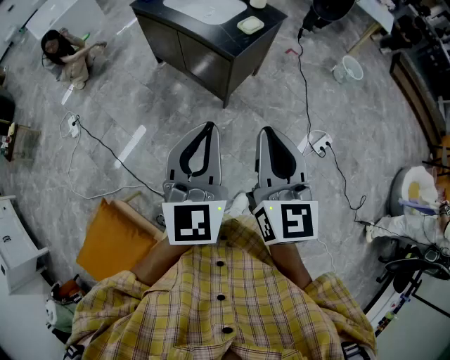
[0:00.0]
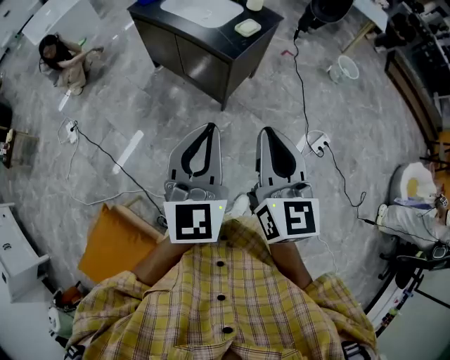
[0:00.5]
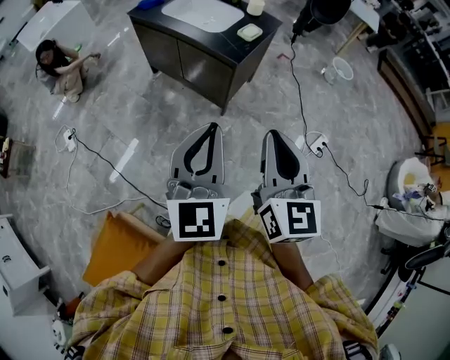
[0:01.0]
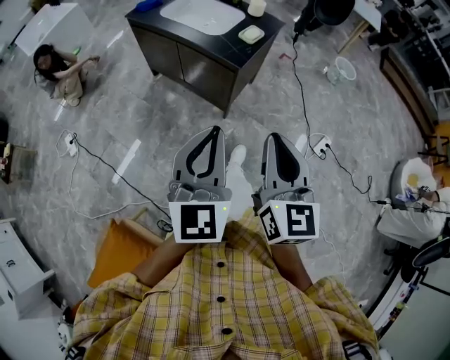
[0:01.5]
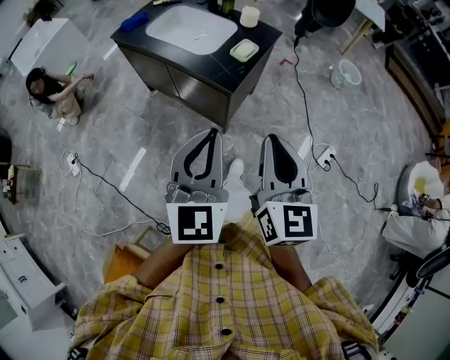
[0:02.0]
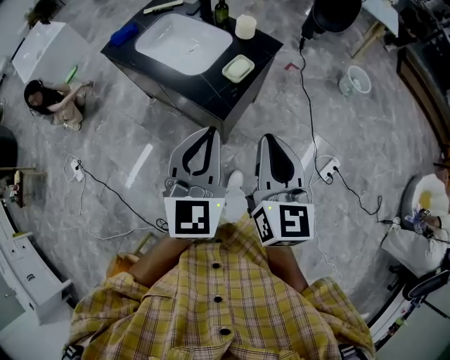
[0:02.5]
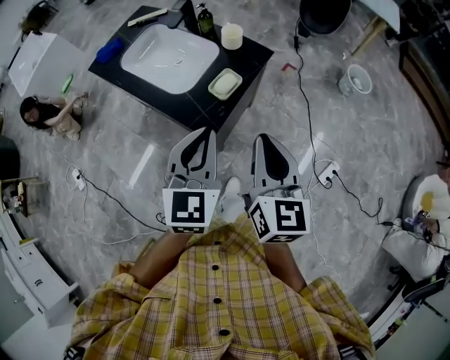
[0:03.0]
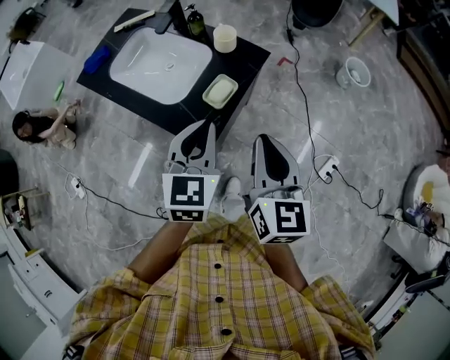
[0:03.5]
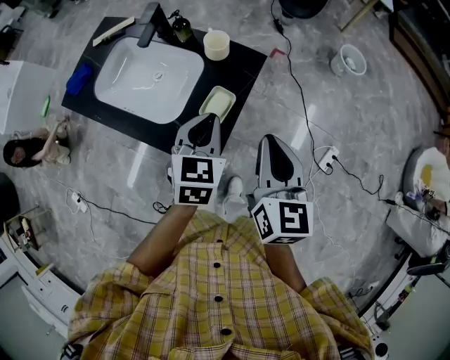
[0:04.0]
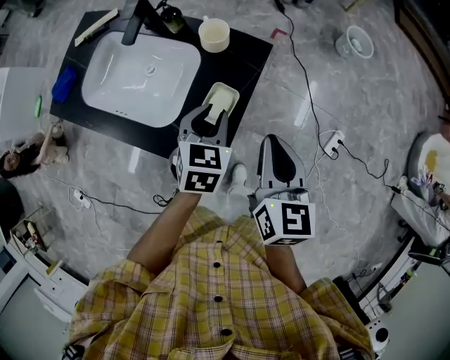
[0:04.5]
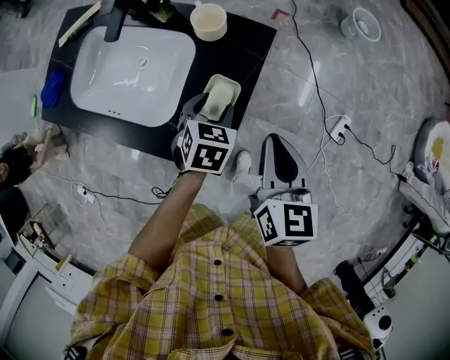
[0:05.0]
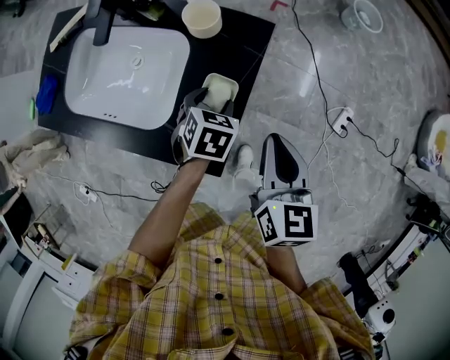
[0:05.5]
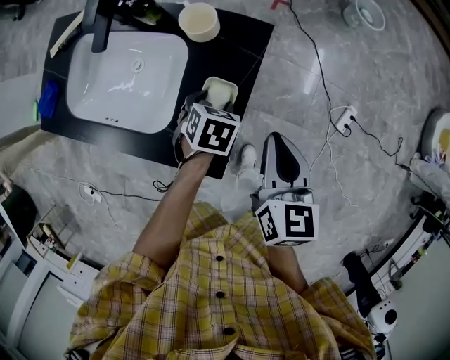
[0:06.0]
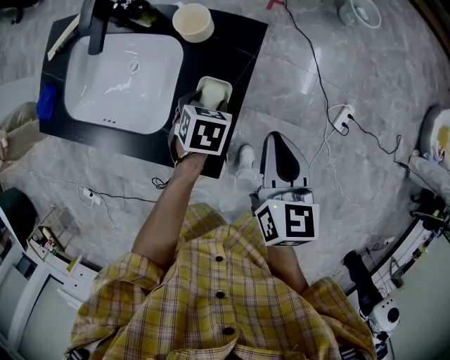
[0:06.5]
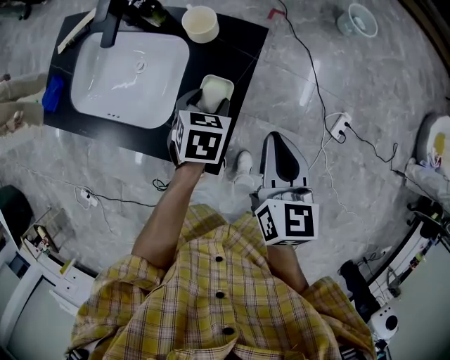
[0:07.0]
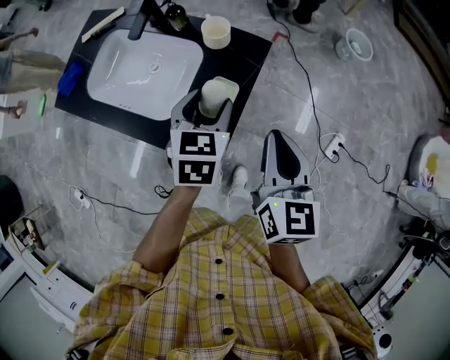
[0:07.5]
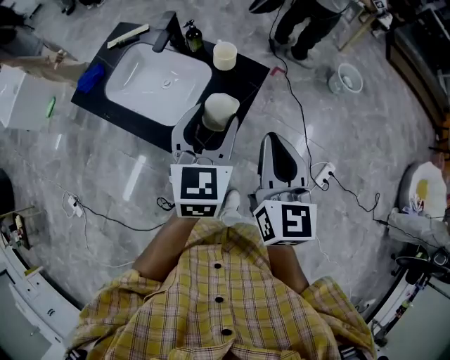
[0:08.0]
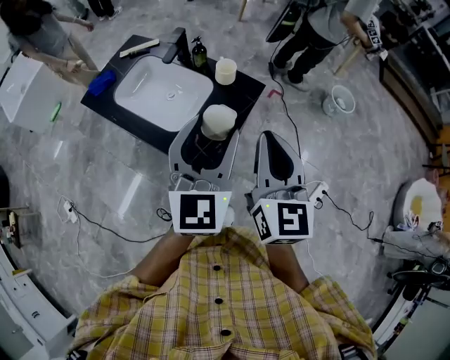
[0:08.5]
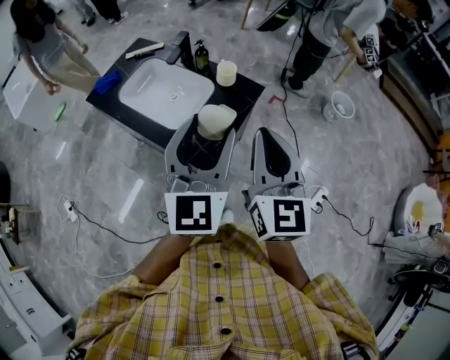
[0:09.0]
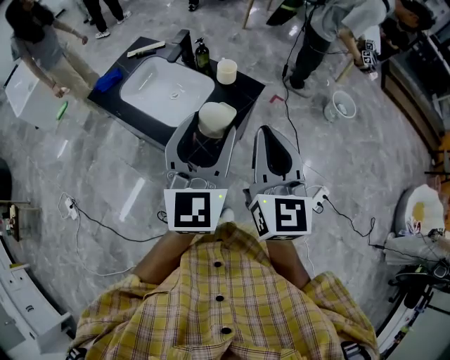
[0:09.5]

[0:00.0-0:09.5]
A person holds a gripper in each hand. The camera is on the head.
0:00.0 to 0:02.0: Both grippers travel together forward, about 20 cm.
0:02.0 to 0:04.0: Both grippers are carried forward, some 40 cm. The left gripper tilts its fingers roughly 30 degrees downward.
0:04.0 to 0:05.5: The left gripper moves downward, about 20 cm, changes its angle by about 30 degrees, and opens up. The right gripper moves downward and forward, approximately 15 cm.
0:05.5 to 0:07.5: The left gripper goes some 20 cm upward, and rotates about 30 degrees. Meanwhile the right gripper moves upward, some 10 cm.
0:07.5 to 0:09.5: The left gripper heads upward and backward, covering some 30 cm, and tips its fingers upward by approximately 40 degrees. Meanwhile the right gripper shifts roughly 20 cm upward and backward, and rotates approximately 30 degrees.

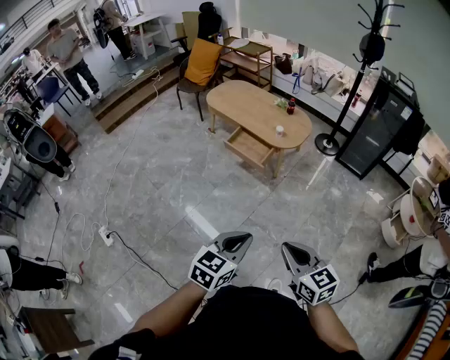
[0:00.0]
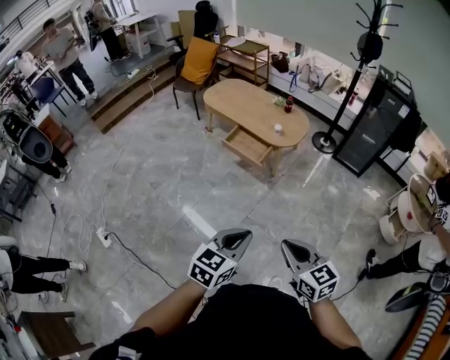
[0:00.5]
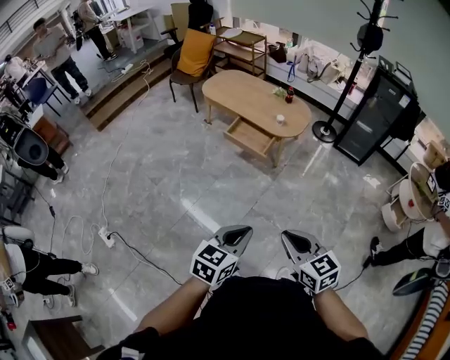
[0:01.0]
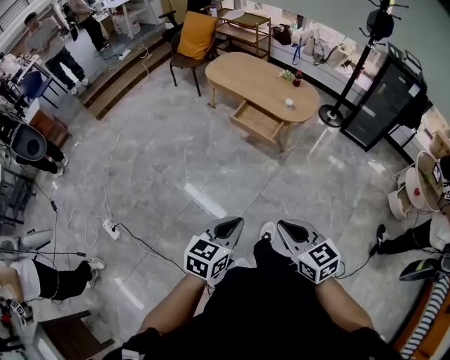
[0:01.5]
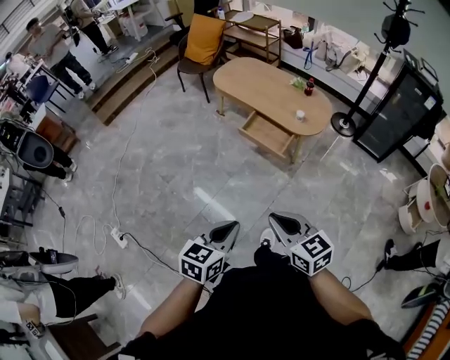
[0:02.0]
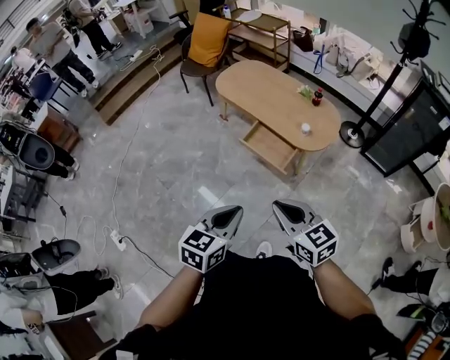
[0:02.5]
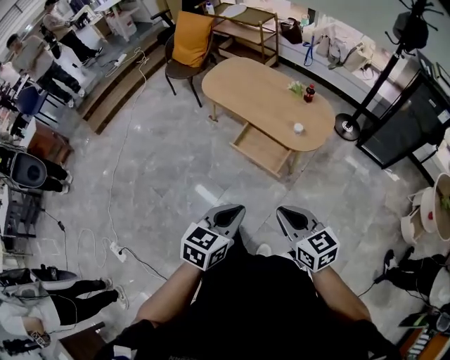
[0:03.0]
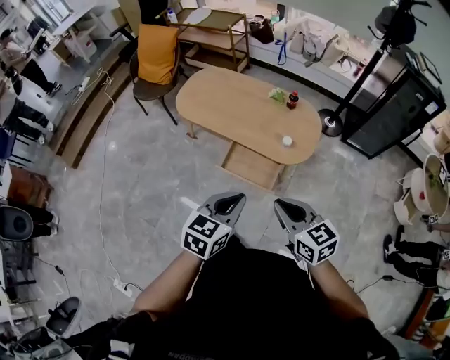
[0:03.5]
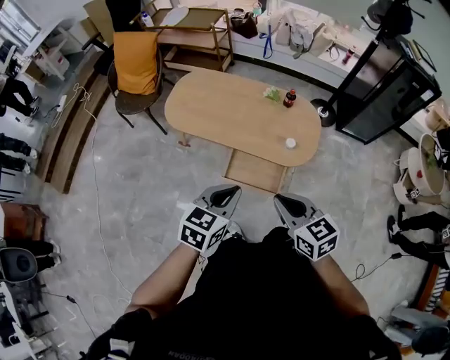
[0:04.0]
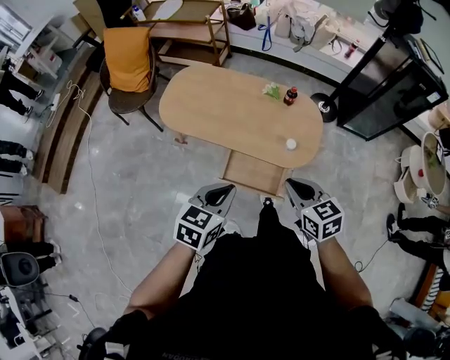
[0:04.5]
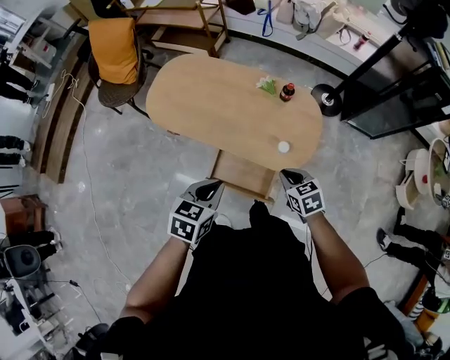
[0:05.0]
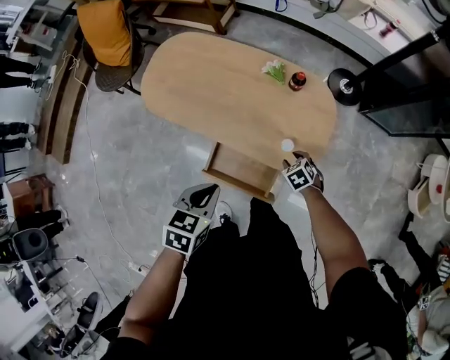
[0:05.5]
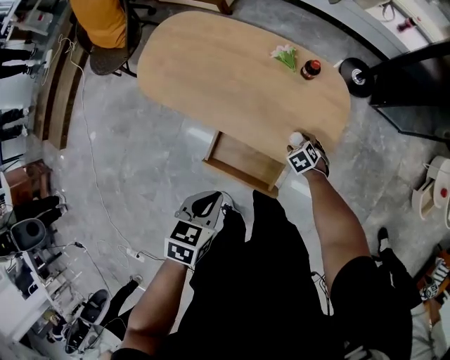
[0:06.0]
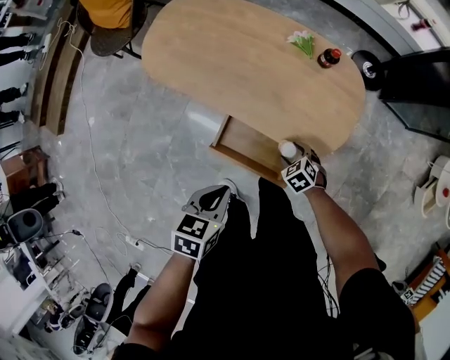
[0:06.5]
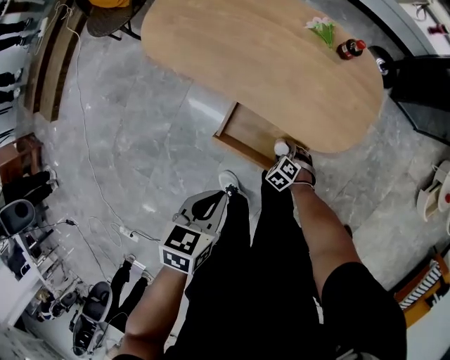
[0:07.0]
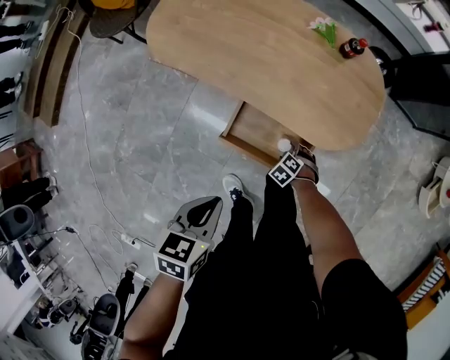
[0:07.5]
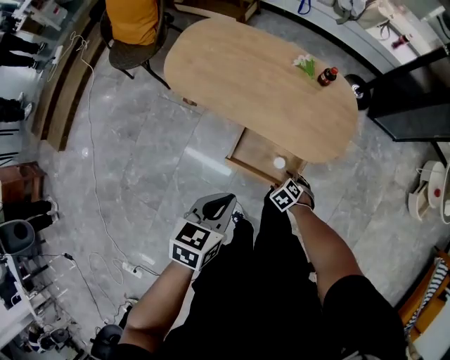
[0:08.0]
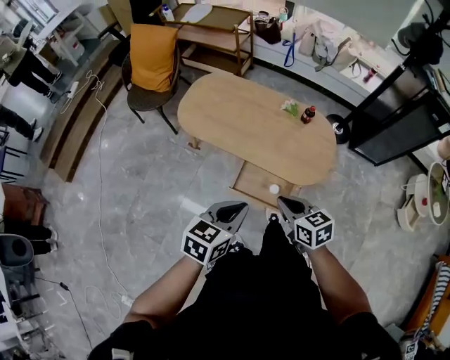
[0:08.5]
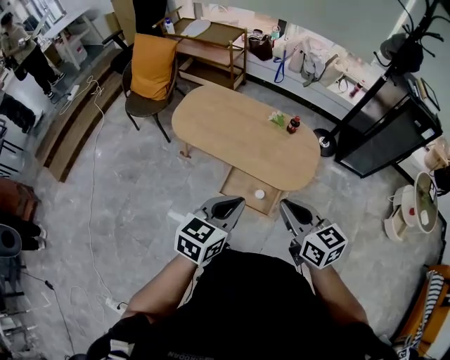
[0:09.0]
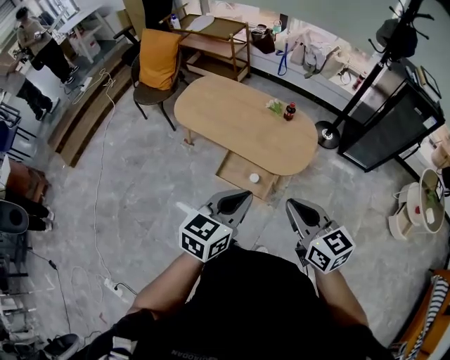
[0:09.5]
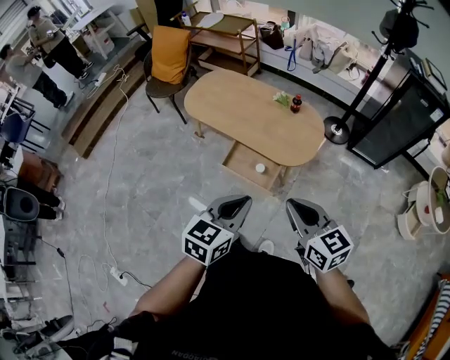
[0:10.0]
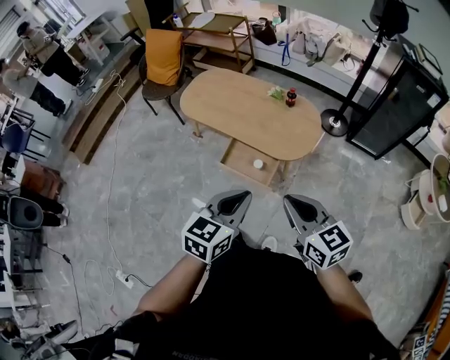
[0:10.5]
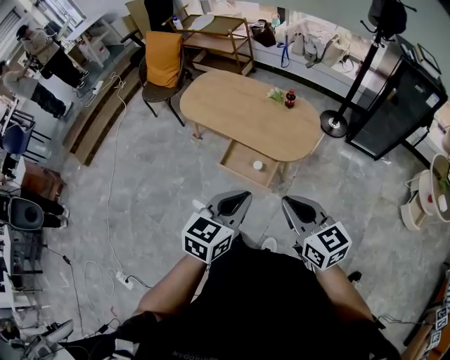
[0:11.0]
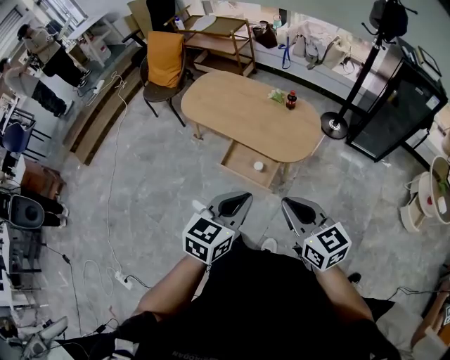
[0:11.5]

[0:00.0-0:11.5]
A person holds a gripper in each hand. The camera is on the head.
0:00.0 to 0:02.0: Both grippers travel together to the left and forward, some 25 cm.
0:02.0 to 0:04.0: The two grippers travel together, about 50 cm. The left gripper rotates roughly 30 degrees. The right gripper rotates some 20 degrees.
0:04.0 to 0:06.0: The right gripper travels downward by about 50 cm, angles its fingers downward, by some 50 degrees, and opens. The left gripper goes approximately 20 cm downward, and turns by about 30 degrees.
0:06.0 to 0:07.5: The left gripper shifts by some 15 cm. Meanwhile the right gripper moves approximately 25 cm, and changes its angle by roughly 20 degrees.
0:07.5 to 0:09.5: The right gripper moves upward, about 70 cm, tilts its fingers about 70 degrees upward, and closes up, while the left gripper goes approximately 30 cm upward, and points its fingers some 30 degrees further upward.
0:09.5 to 0:11.5: The two grippers go roughly 10 cm backward.

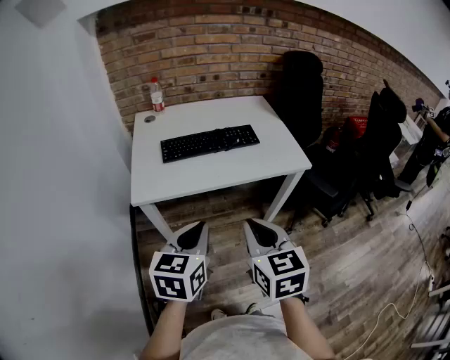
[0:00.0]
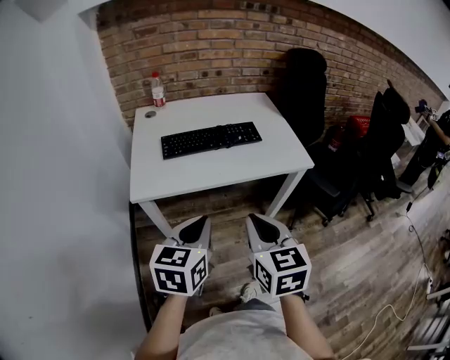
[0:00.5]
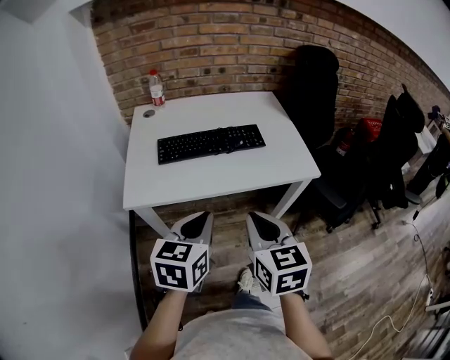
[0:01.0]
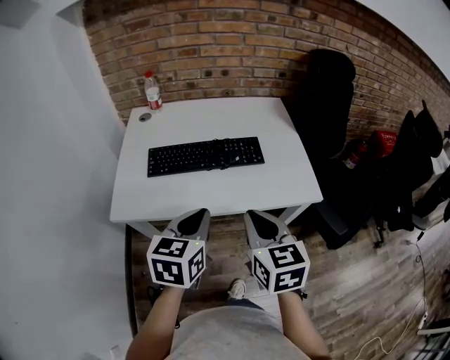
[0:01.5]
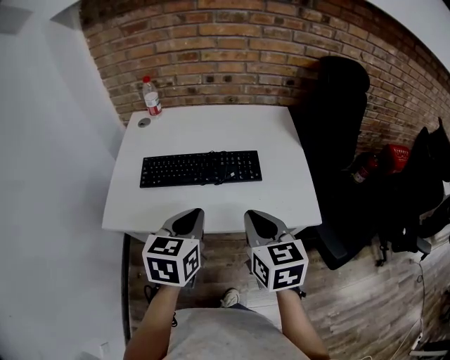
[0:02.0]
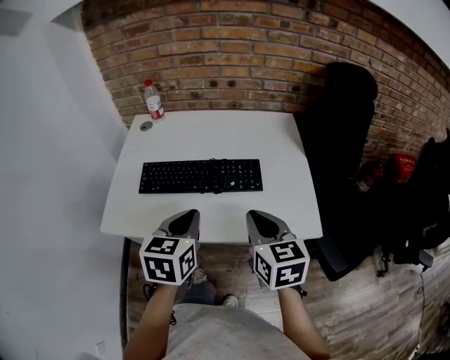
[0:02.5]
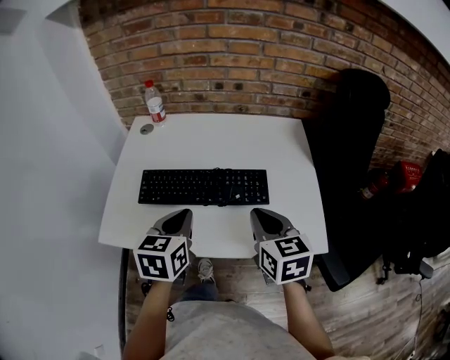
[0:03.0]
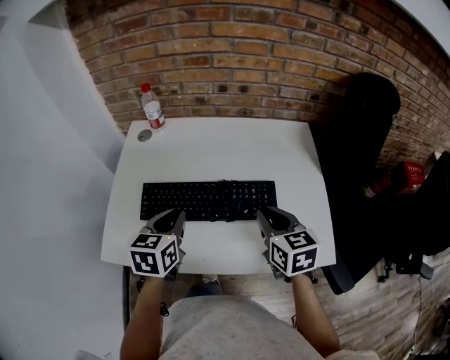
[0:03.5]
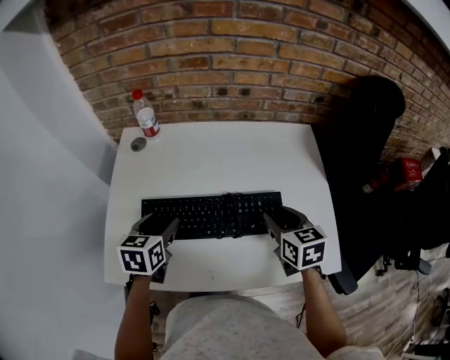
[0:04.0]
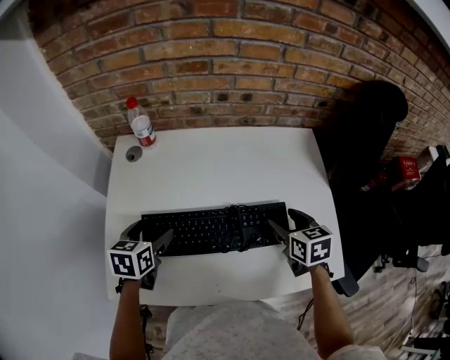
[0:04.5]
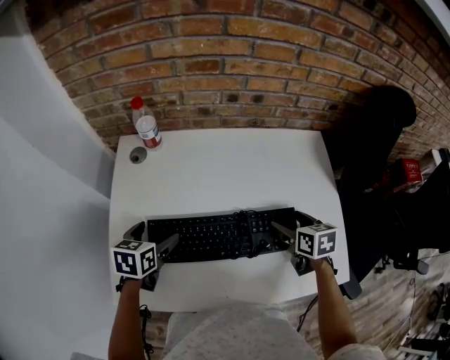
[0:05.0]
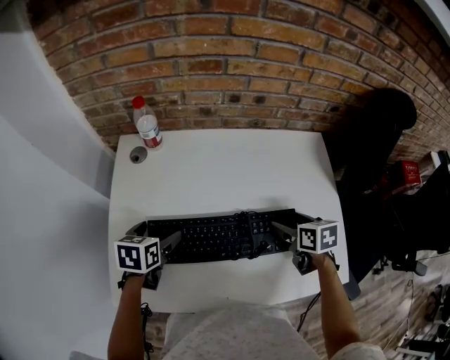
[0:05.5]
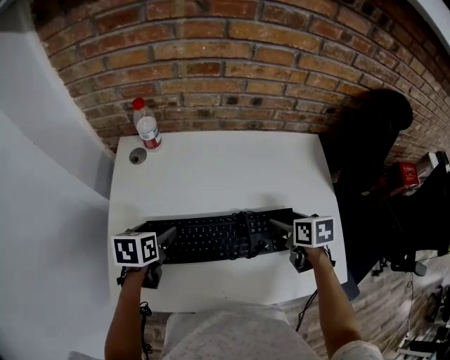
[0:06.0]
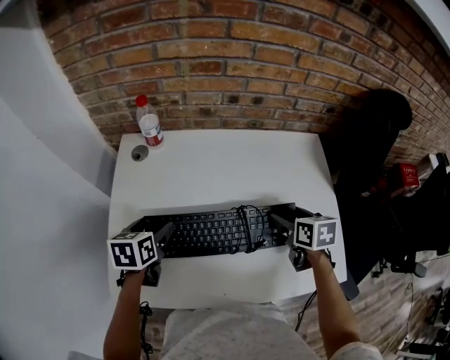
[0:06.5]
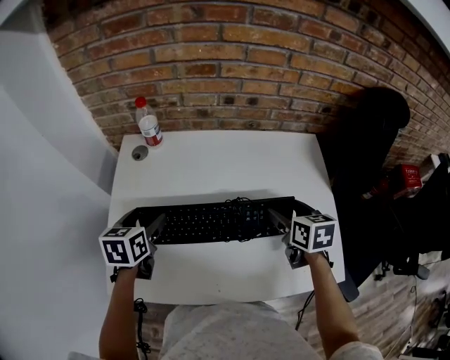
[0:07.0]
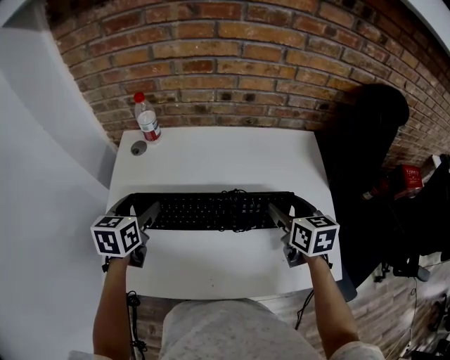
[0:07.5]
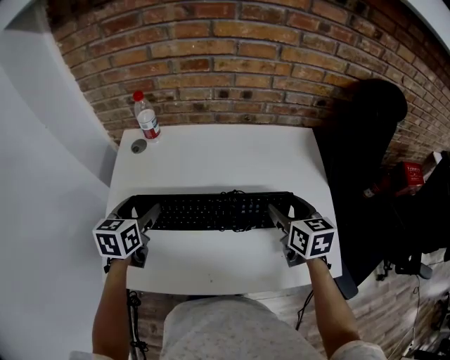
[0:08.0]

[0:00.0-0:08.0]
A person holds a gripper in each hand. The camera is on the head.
0:00.0 to 0:02.0: The left gripper shifts about 25 cm forward, while the right gripper moves forward and to the right, roughly 30 cm.
0:02.0 to 0:04.0: The right gripper heads forward, covering roughly 25 cm, and opens its fingers. Meanwhile the left gripper shifts roughly 30 cm forward, to the left and downward, and opens up.
0:04.0 to 0:06.0: The left gripper travels to the left and forward by about 10 cm. The right gripper travels downward and forward by about 10 cm, changes its angle by approximately 20 degrees, and opens.
0:06.0 to 0:08.0: The two grippers go roughly 5 cm upward. The left gripper rotates about 20 degrees; the right gripper turns by some 30 degrees.
